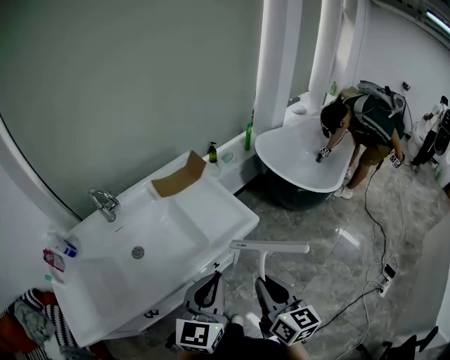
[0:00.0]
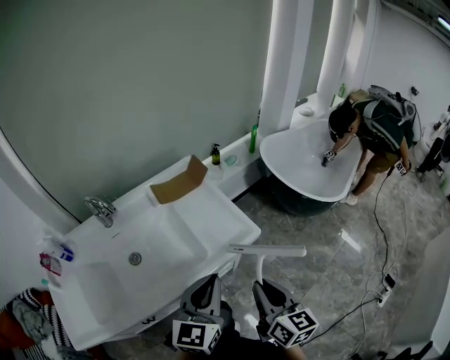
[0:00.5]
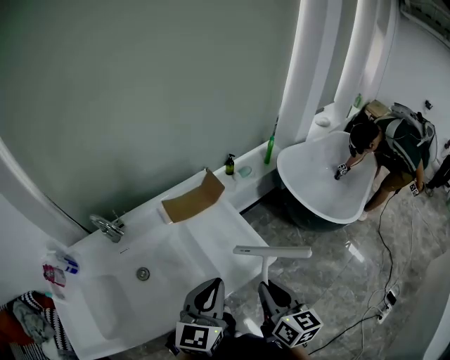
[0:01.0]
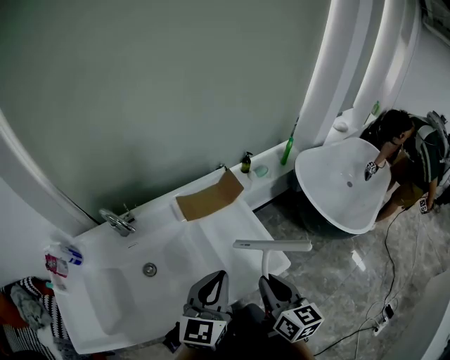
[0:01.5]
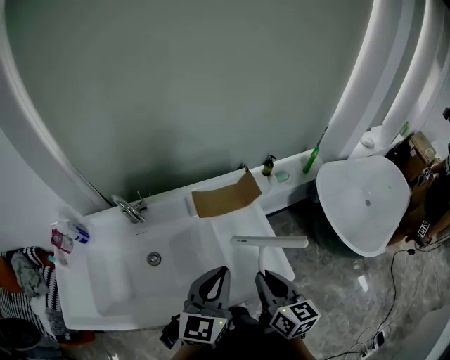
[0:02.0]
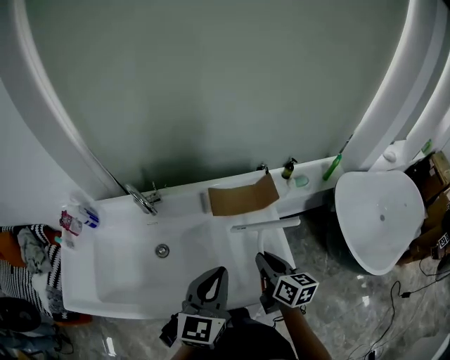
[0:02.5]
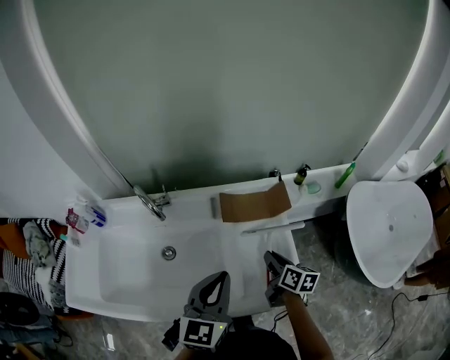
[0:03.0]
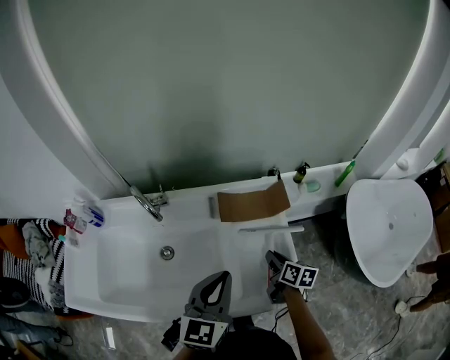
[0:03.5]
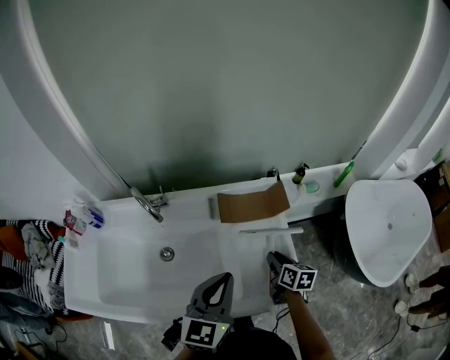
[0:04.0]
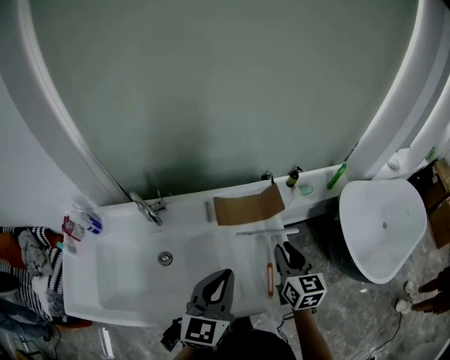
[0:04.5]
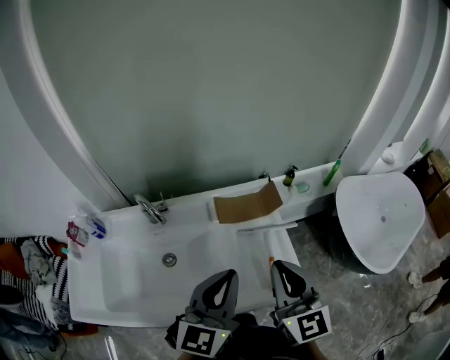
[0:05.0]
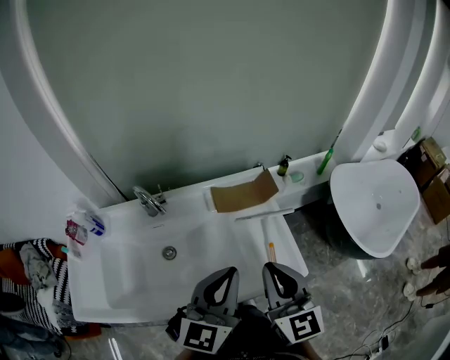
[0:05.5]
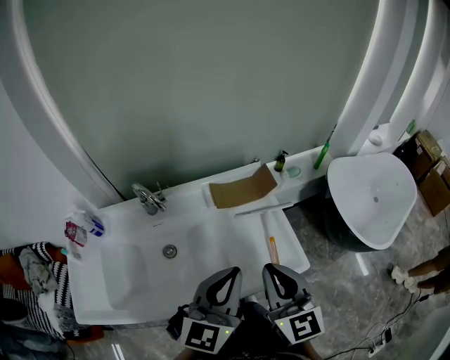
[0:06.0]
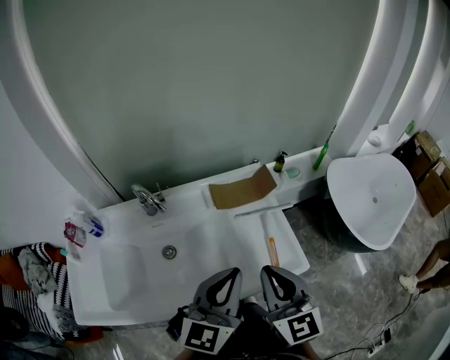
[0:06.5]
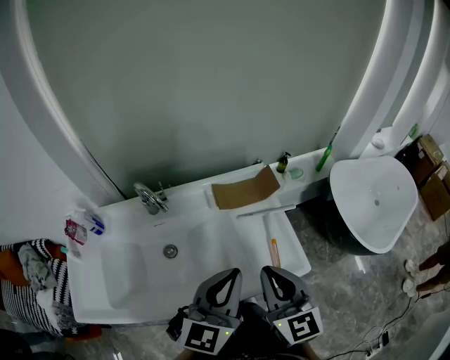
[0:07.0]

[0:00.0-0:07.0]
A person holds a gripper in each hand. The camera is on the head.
0:00.0 to 0:02.0: Both grippers travel together forward, about 25 cm. The right gripper rotates approximately 20 degrees.
0:02.0 to 0:03.5: The right gripper is displaced downward and forward by roughly 25 cm, and turns by some 30 degrees.
0:03.5 to 0:05.0: The right gripper moves upward, about 30 cm, and rolls counterclockwise, seen from behind, by some 50 degrees. Meanwhile the left gripper goes approximately 10 cm upward.
0:05.0 to 0:07.0: The left gripper ends up some 5 cm from where it was, while the right gripper heads backward, covering roughly 5 cm.

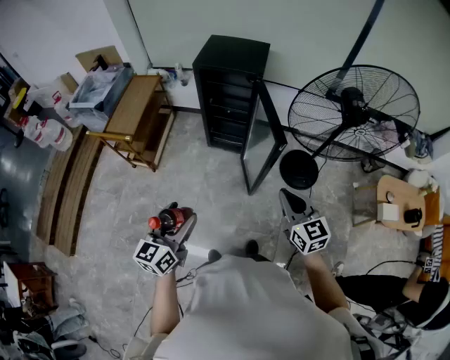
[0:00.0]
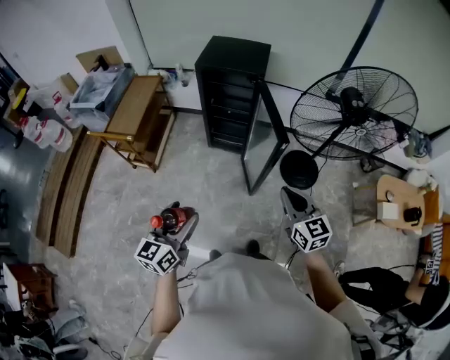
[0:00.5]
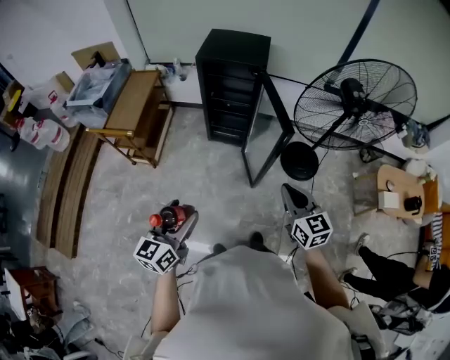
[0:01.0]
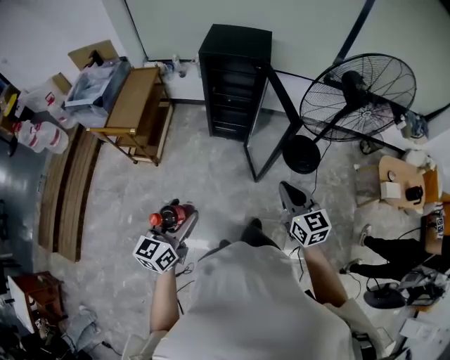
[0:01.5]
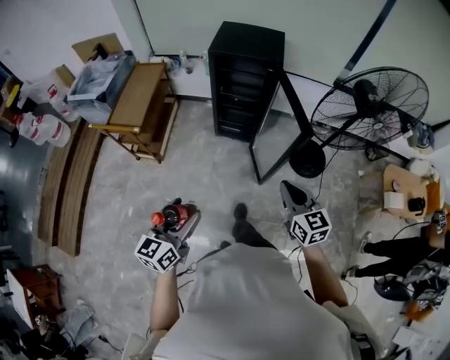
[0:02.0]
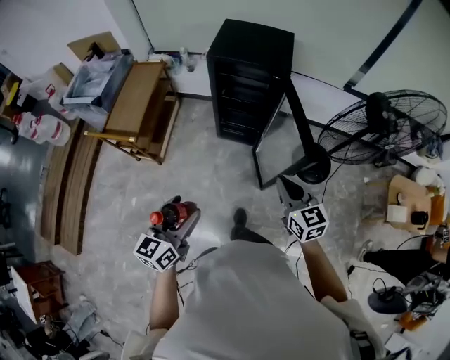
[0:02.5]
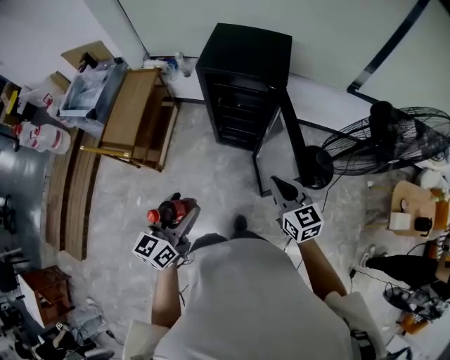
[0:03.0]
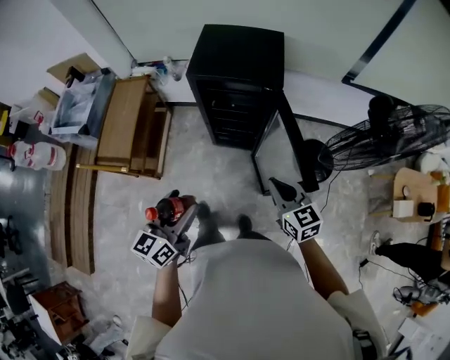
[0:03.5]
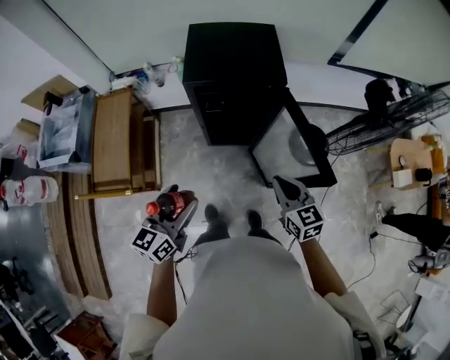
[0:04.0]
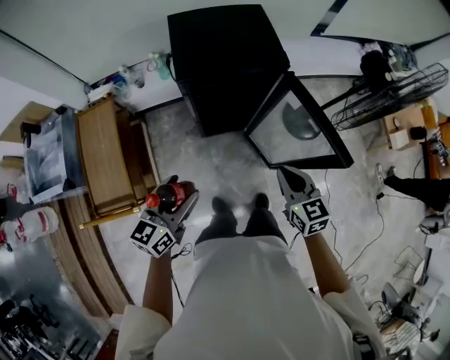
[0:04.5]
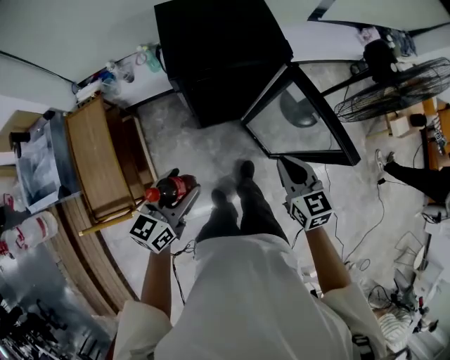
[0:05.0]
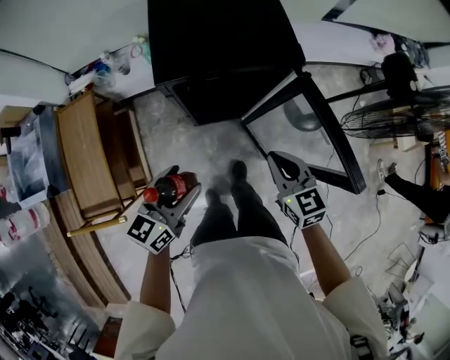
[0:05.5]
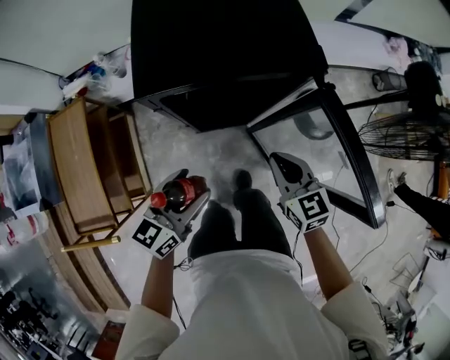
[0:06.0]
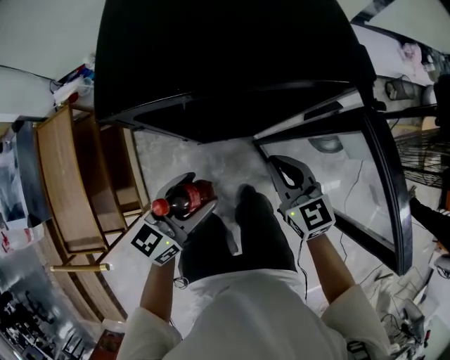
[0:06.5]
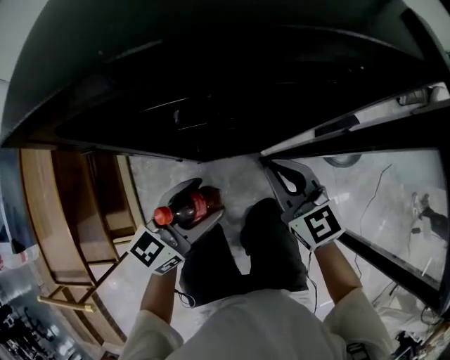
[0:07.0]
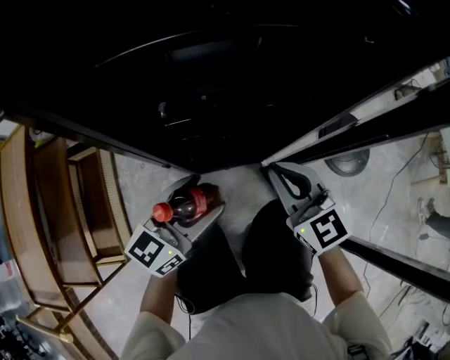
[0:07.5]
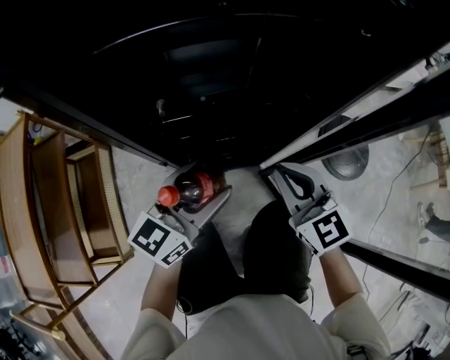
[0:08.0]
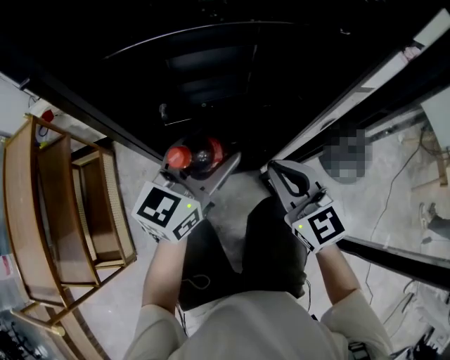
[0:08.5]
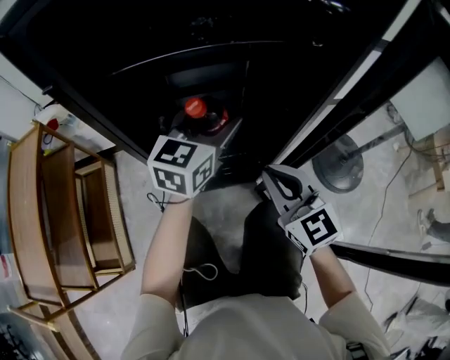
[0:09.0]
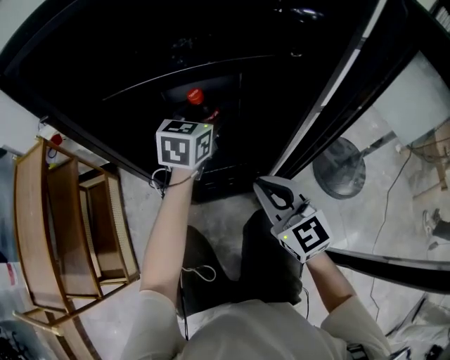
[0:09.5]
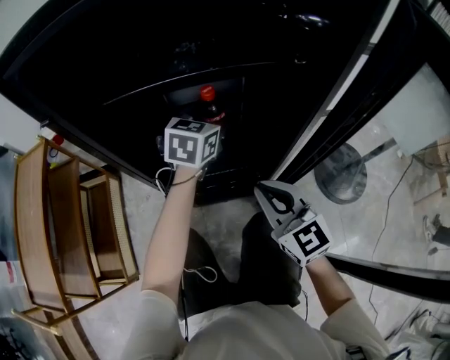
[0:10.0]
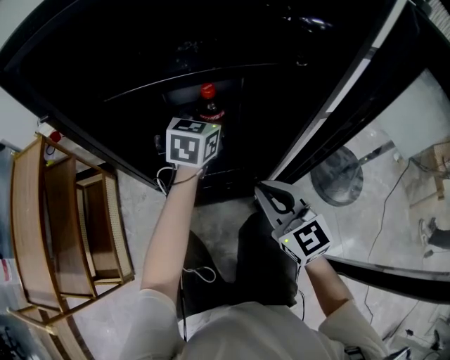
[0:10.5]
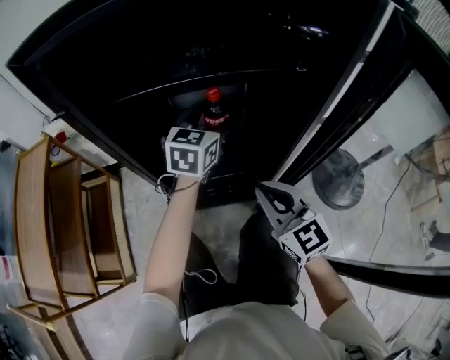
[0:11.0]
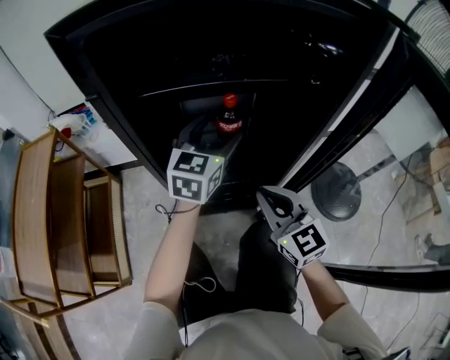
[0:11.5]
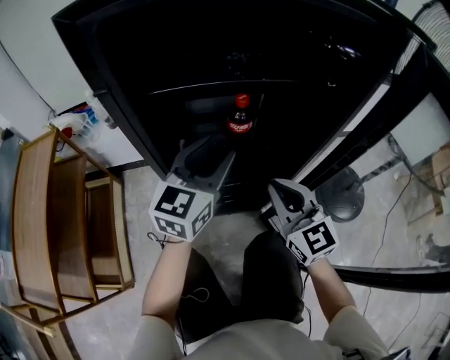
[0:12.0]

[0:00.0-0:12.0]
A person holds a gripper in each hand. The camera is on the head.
0:00.0 to 0:02.0: The grippers both shift to the left by roughly 10 cm.
0:02.0 to 0:04.0: Both grippers move forward, about 35 cm.
0:04.0 to 0:06.0: The grippers both shift forward and downward by about 30 cm.
0:06.0 to 0:08.0: Both grippers travel together downward, approximately 30 cm.
0:08.0 to 0:10.0: The left gripper shifts roughly 20 cm forward, and swivels approximately 30 degrees.
0:10.0 to 0:12.0: The left gripper shifts some 15 cm backward, to the left and upward, swivels about 20 degrees, and closes its fingers.

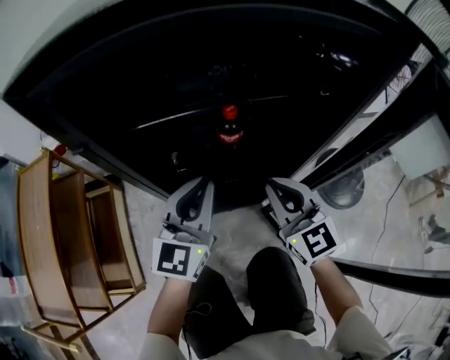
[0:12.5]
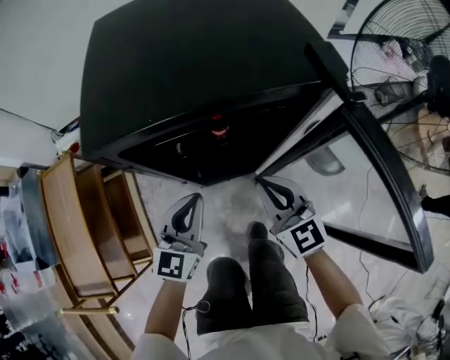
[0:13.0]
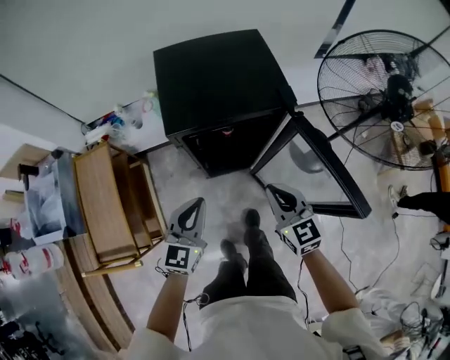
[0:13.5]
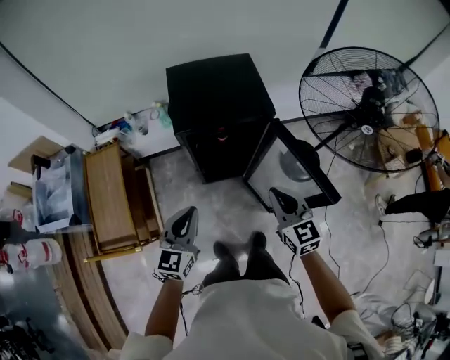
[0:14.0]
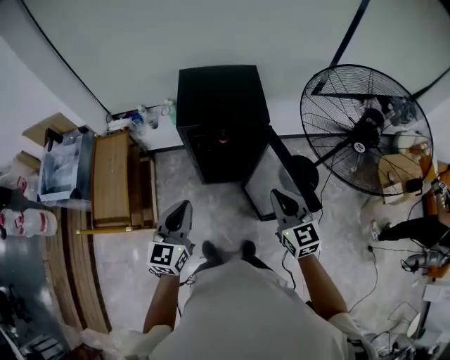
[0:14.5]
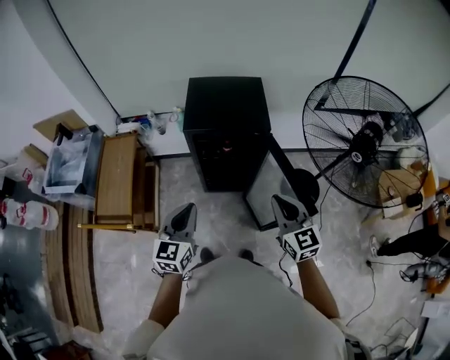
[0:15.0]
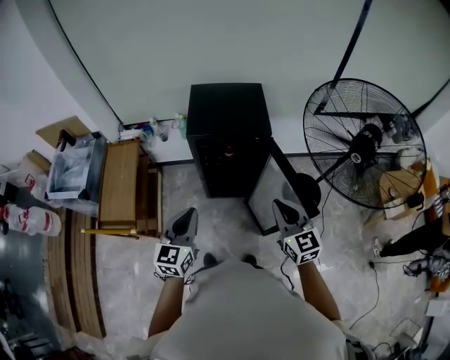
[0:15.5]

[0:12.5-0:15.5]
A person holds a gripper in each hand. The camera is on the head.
0:12.5 to 0:14.0: Both grippers travel together upward and backward, roughly 50 cm.
0:14.0 to 0:15.5: The right gripper heads upward, backward and to the right, covering some 10 cm. Meanwhile the left gripper moves backward and upward, some 10 cm.

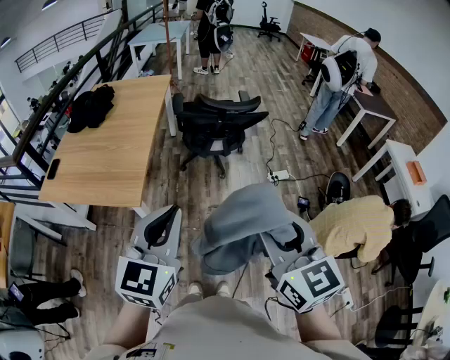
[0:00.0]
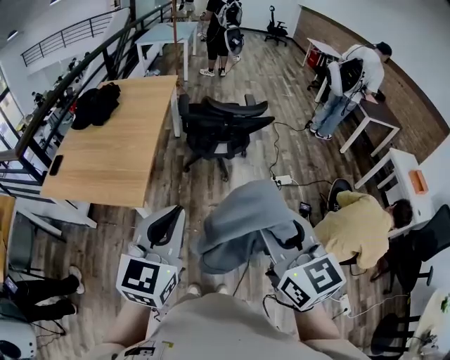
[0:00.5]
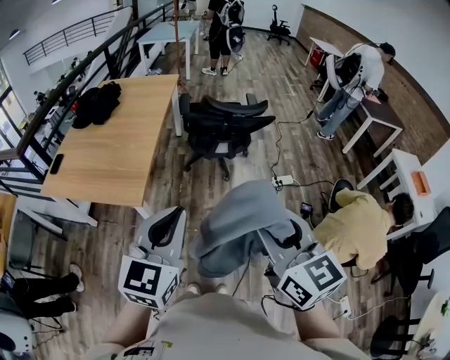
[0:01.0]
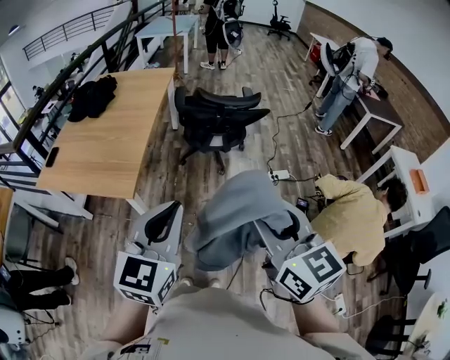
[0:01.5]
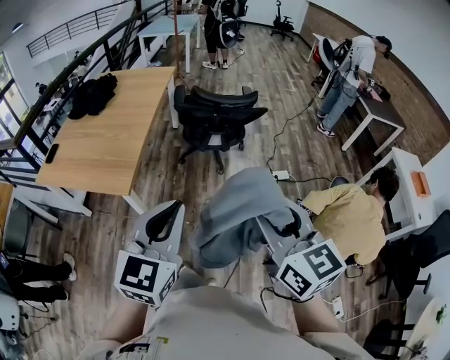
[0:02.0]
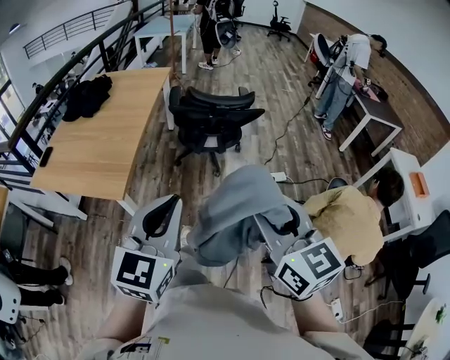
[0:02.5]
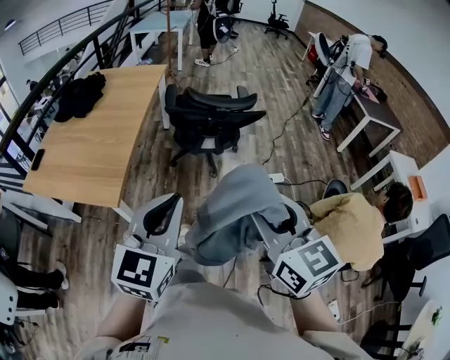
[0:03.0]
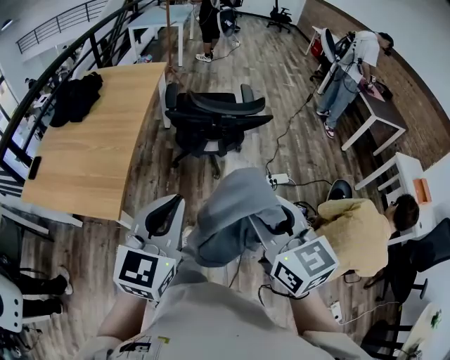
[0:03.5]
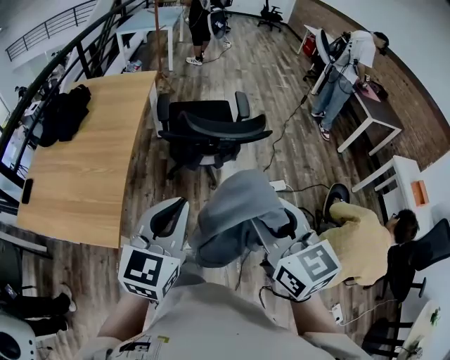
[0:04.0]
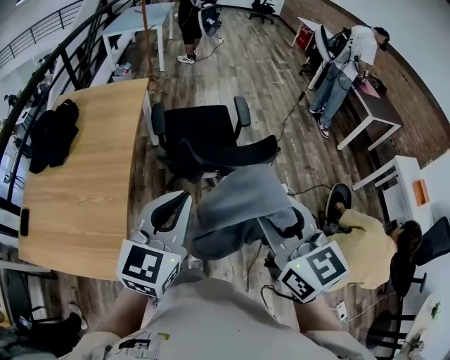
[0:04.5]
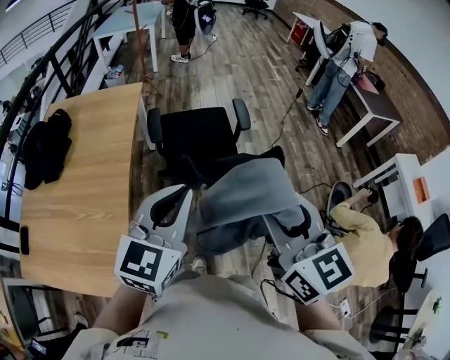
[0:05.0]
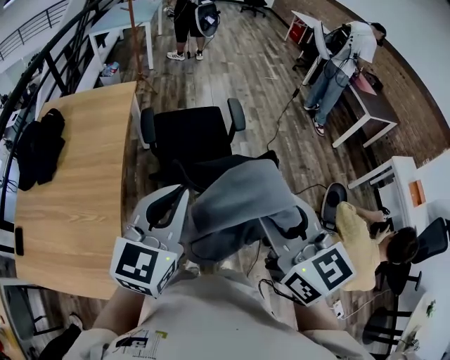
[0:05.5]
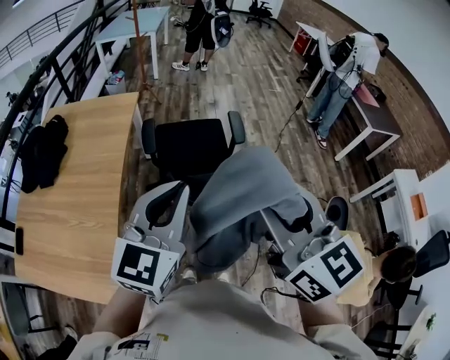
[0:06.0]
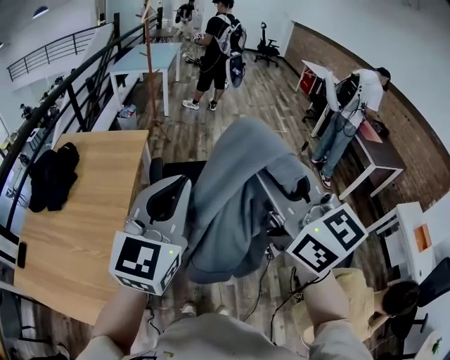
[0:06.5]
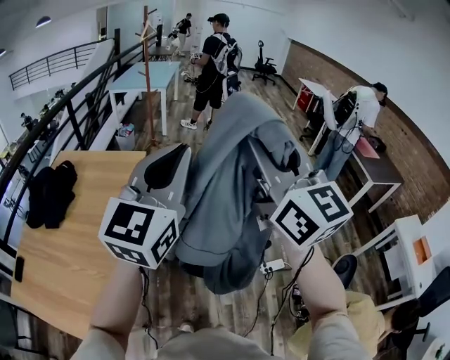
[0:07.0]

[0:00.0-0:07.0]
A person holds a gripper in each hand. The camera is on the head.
0:00.0 to 0:02.0: The two grippers go about 10 cm to the right.
0:02.0 to 0:03.5: The two grippers go some 20 cm forward.
0:03.5 to 0:05.0: The grippers both shift forward by some 35 cm.
0:05.0 to 0:07.0: The grippers both shift upward and forward by some 30 cm. The left gripper rotates approximately 20 degrees. Meanwhile the right gripper rotates some 30 degrees.
